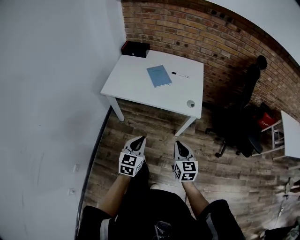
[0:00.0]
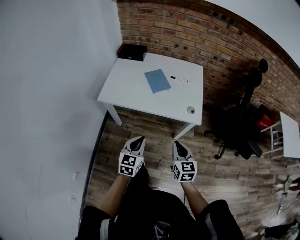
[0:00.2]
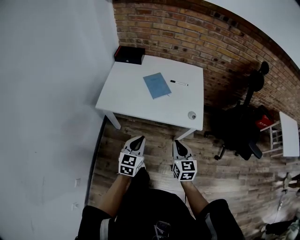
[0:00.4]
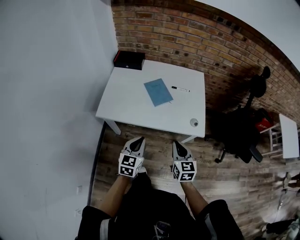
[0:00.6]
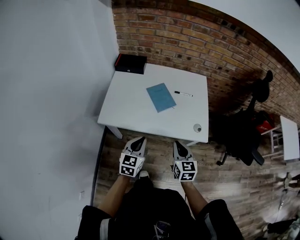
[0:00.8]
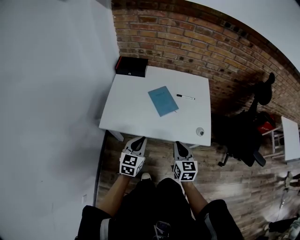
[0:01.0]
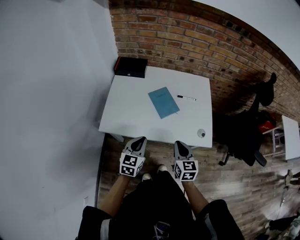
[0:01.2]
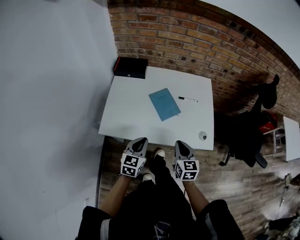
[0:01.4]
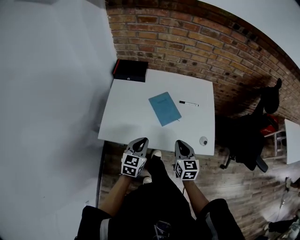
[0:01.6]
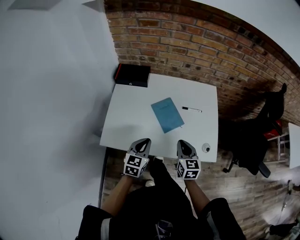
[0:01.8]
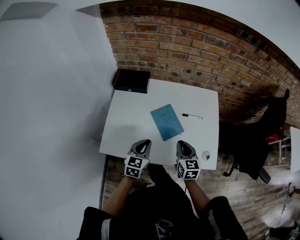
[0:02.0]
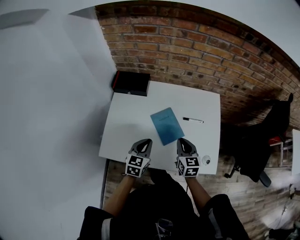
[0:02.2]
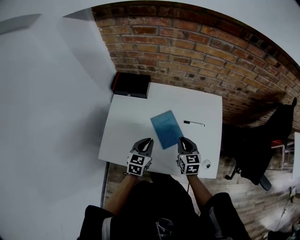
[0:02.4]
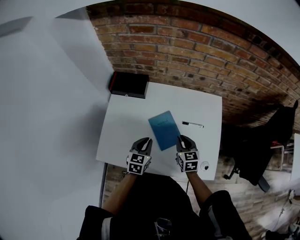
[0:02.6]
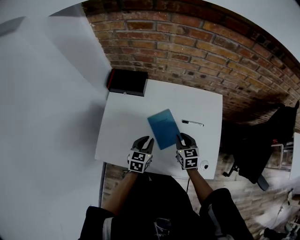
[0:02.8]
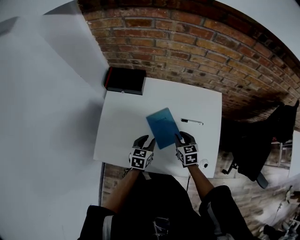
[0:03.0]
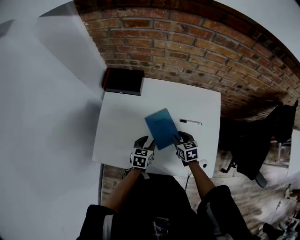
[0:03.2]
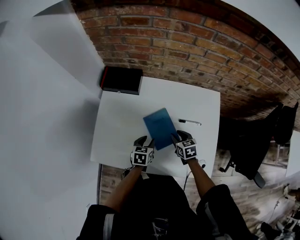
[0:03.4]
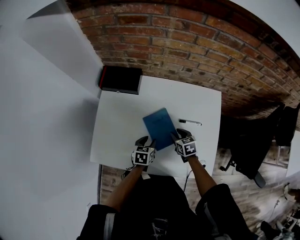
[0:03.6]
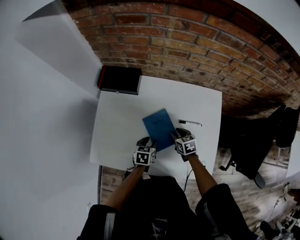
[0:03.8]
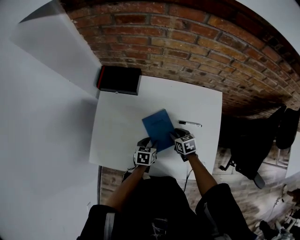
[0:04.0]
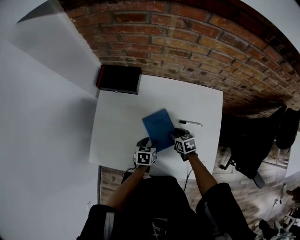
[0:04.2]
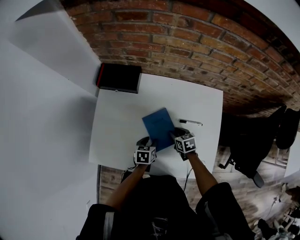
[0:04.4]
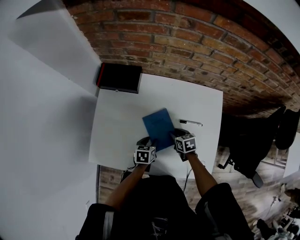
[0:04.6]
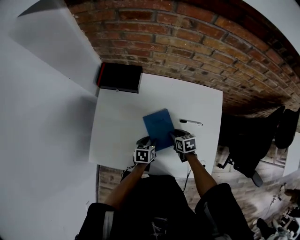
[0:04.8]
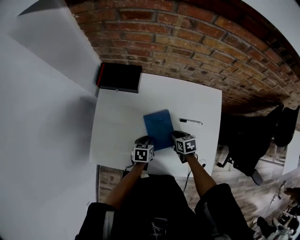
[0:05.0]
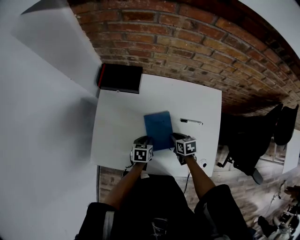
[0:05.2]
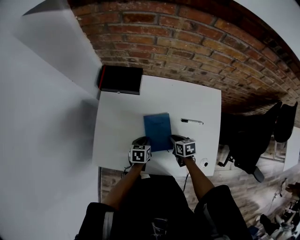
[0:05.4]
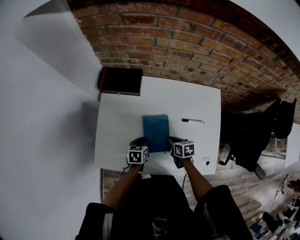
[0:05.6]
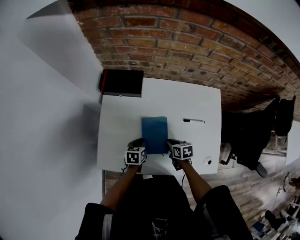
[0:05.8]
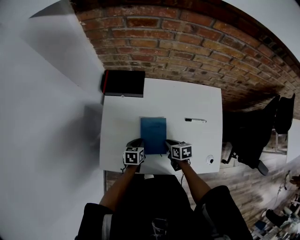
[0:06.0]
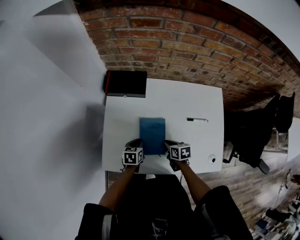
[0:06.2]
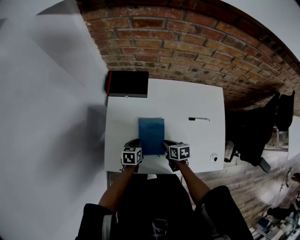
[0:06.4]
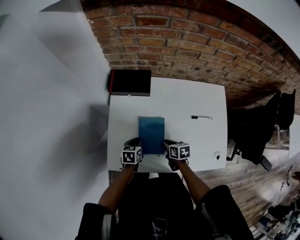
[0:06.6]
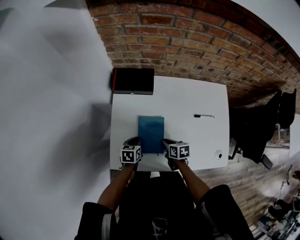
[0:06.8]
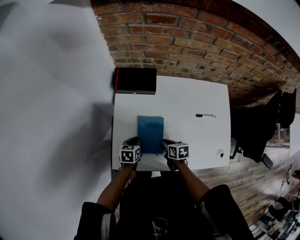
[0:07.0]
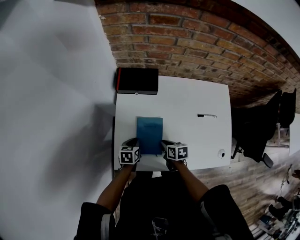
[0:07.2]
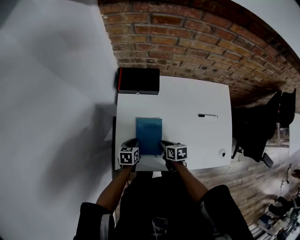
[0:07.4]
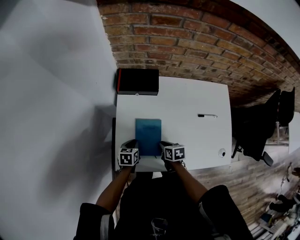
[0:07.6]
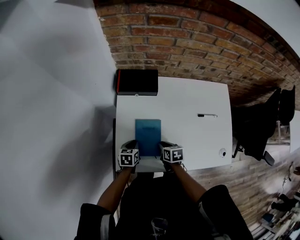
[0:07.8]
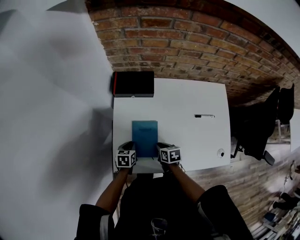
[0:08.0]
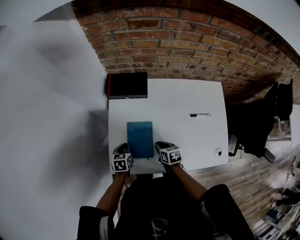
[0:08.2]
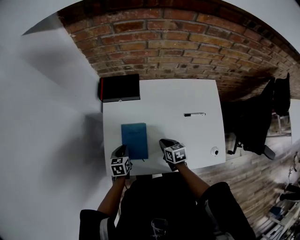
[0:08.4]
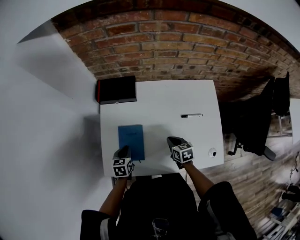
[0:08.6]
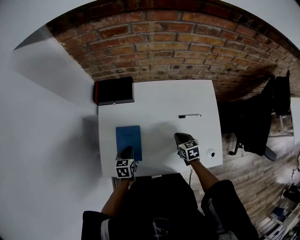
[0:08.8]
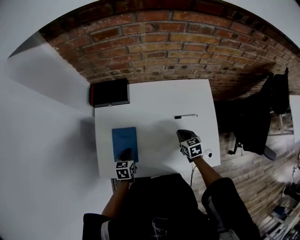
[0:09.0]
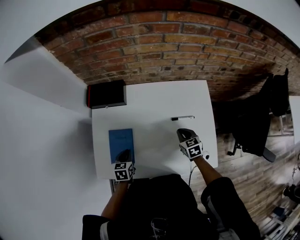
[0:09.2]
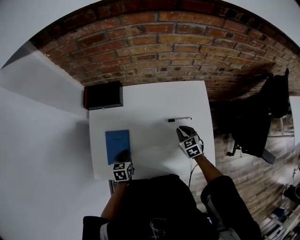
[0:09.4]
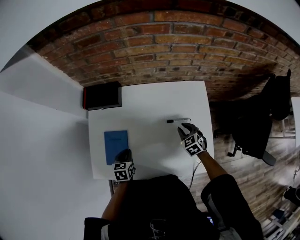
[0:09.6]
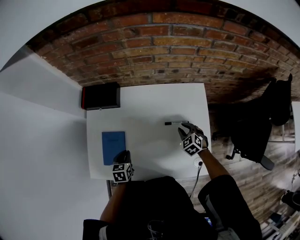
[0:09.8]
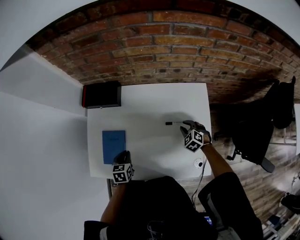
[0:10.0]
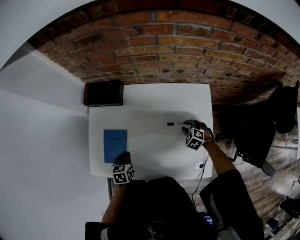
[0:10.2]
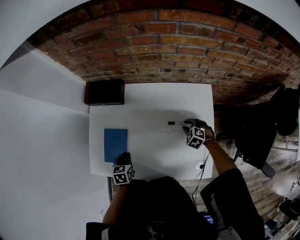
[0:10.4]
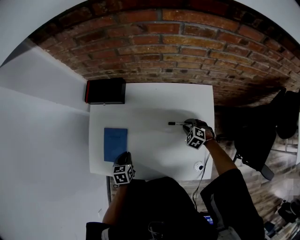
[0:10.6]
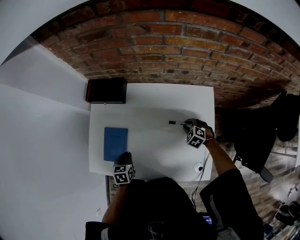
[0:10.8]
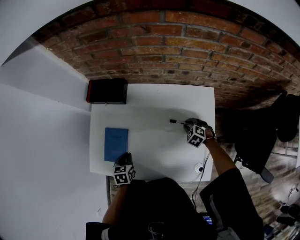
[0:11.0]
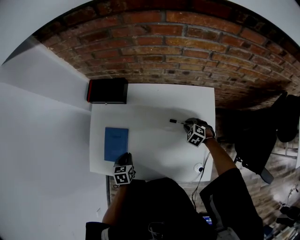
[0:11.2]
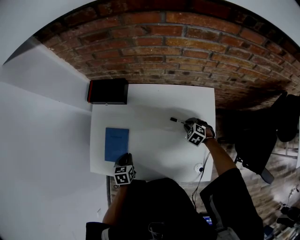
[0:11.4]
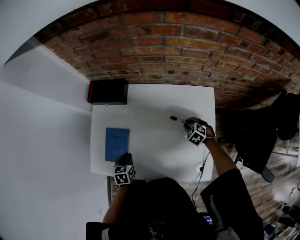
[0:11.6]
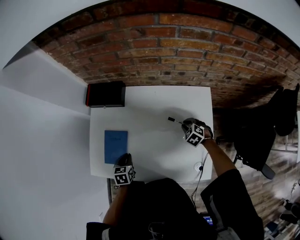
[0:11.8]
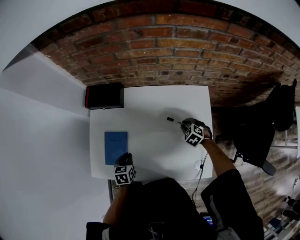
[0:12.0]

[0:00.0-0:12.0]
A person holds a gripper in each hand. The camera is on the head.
0.0 to 1.6 s: The right gripper heads forward and to the left, covering approximately 35 cm. The left gripper moves forward, about 35 cm.
1.6 to 3.0 s: The two grippers go roughly 25 cm forward and downward. The left gripper opens up.
3.0 to 4.4 s: The grippers both shift downward by approximately 10 cm.
4.4 to 6.0 s: The left gripper heads to the left, covering about 10 cm, and closes its fingers; the right gripper goes approximately 10 cm to the left and backward, and closes.
6.0 to 7.6 s: Both grippers travel together to the left, roughly 15 cm.
7.6 to 9.0 s: The left gripper travels to the right by about 10 cm, while the right gripper heads to the right, covering some 25 cm, and changes its angle by roughly 20 degrees.
9.0 to 10.4 s: The left gripper moves to the right, some 5 cm; the right gripper heads to the right, forward and downward, covering approximately 15 cm, and rolls counterclockwise, seen from behind, by roughly 50 degrees.
10.4 to 12.0 s: The grippers make only small movements.

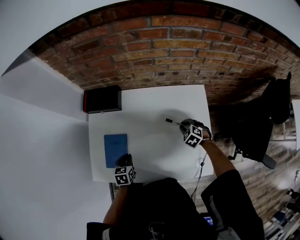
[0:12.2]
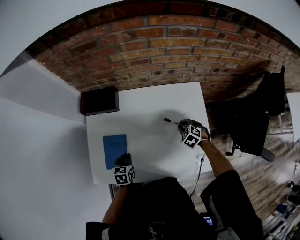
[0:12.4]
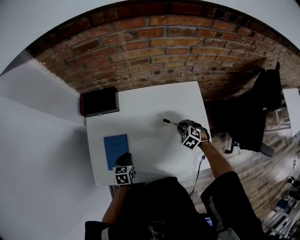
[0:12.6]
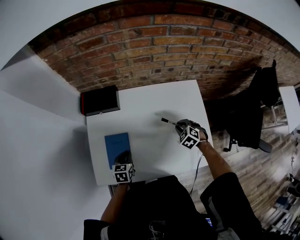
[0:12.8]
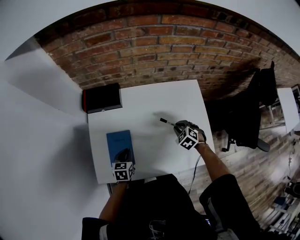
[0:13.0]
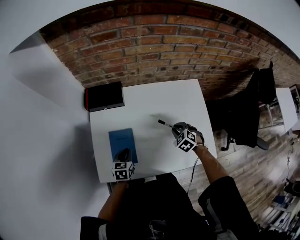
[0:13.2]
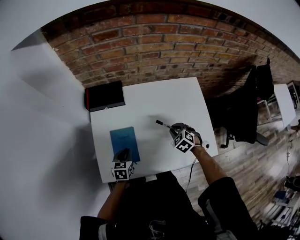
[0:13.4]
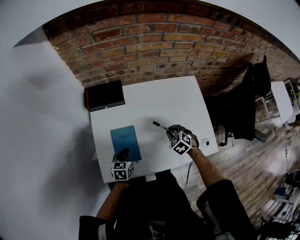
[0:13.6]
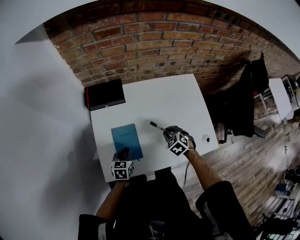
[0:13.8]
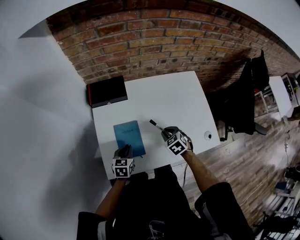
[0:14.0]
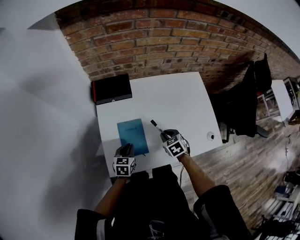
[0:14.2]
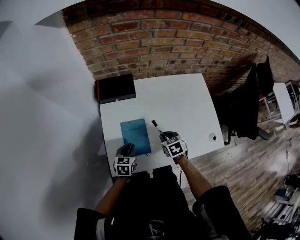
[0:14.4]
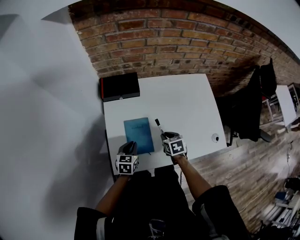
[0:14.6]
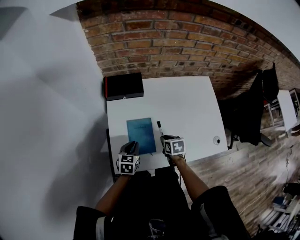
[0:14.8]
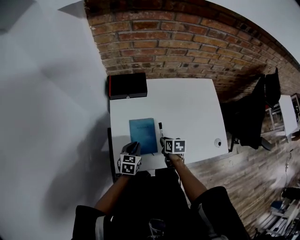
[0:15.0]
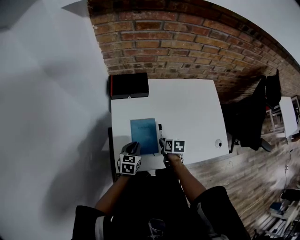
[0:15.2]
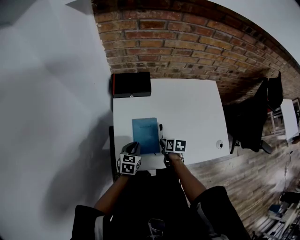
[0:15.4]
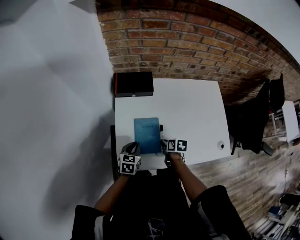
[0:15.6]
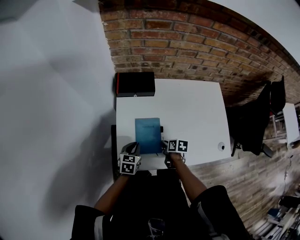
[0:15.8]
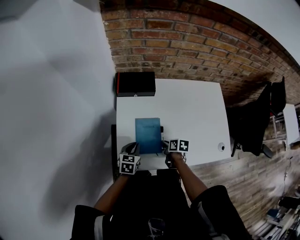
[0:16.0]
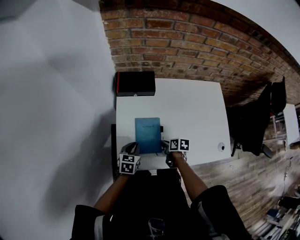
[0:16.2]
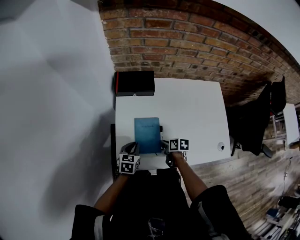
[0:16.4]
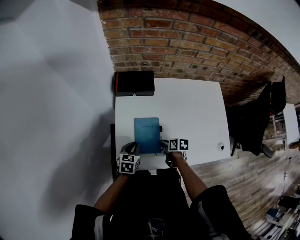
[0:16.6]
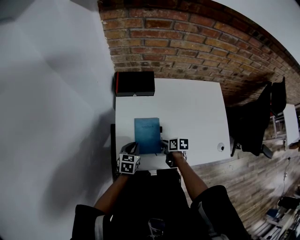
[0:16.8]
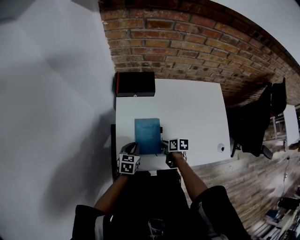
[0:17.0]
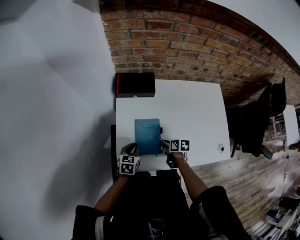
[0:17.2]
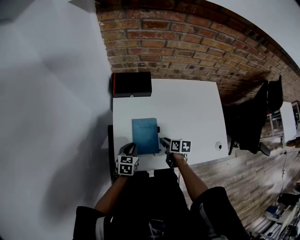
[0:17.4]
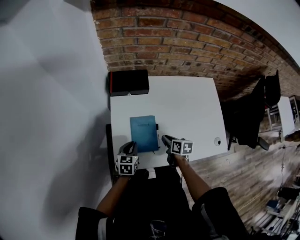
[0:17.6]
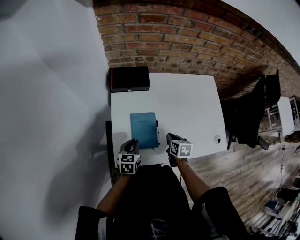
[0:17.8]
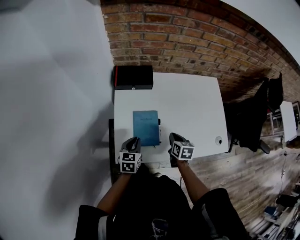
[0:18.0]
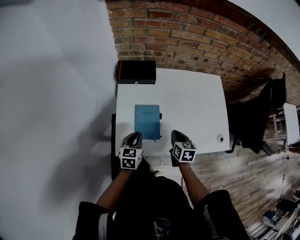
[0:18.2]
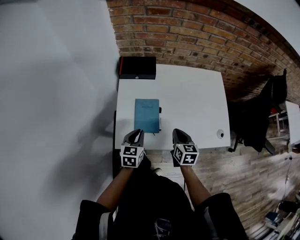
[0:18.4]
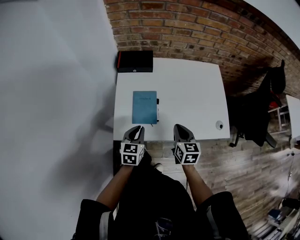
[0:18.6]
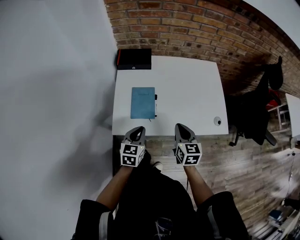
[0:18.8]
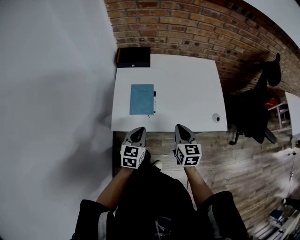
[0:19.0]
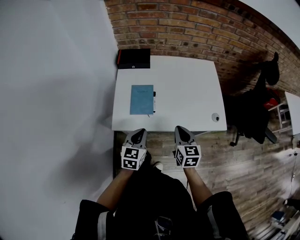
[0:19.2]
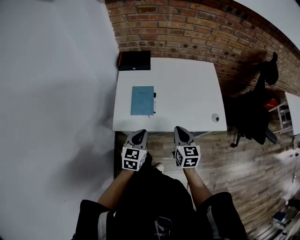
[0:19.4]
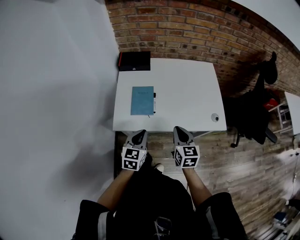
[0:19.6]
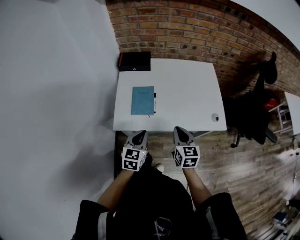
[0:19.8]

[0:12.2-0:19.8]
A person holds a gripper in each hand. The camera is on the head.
12.2 to 13.8 s: The left gripper travels to the left by roughly 10 cm; the right gripper travels to the left and backward by approximately 20 cm.
13.8 to 15.2 s: The right gripper heads to the left and downward, covering approximately 15 cm, and twists roughly 60 degrees clockwise, seen from behind. The left gripper changes place by approximately 5 cm.
15.2 to 16.8 s: There are only small adjustments of the grippers.
16.8 to 18.2 s: The right gripper heads upward and to the right, covering some 10 cm, and rotates roughly 30 degrees, while the left gripper travels upward by approximately 5 cm.
18.2 to 19.8 s: The left gripper heads backward, to the right and upward, covering approximately 20 cm; the right gripper shifts some 20 cm backward and upward.

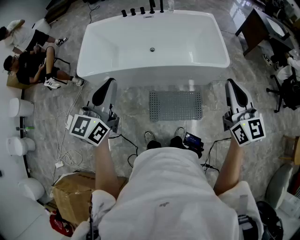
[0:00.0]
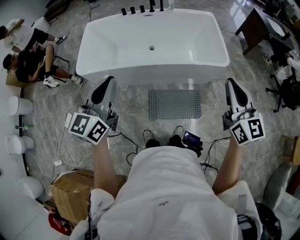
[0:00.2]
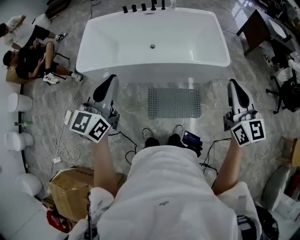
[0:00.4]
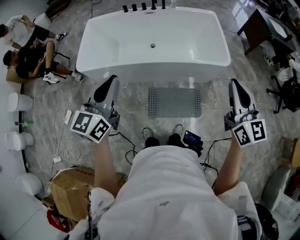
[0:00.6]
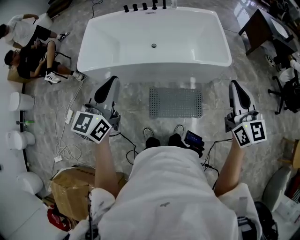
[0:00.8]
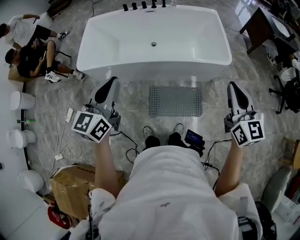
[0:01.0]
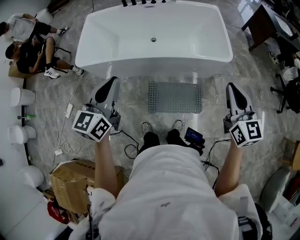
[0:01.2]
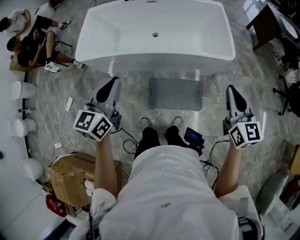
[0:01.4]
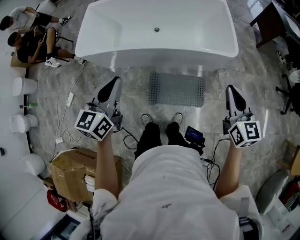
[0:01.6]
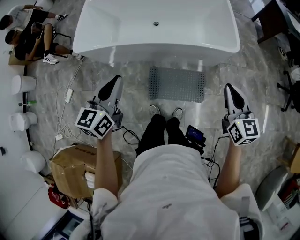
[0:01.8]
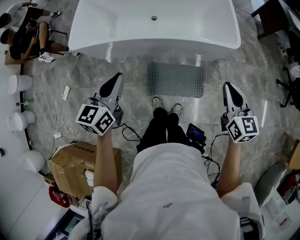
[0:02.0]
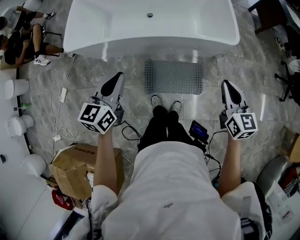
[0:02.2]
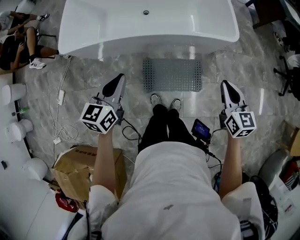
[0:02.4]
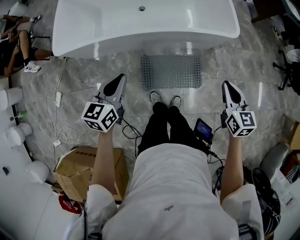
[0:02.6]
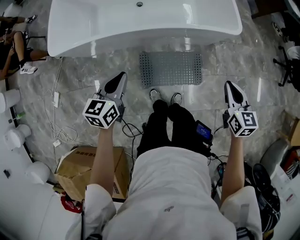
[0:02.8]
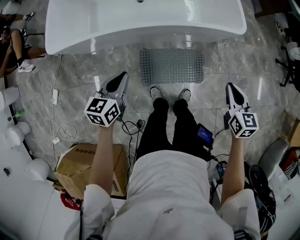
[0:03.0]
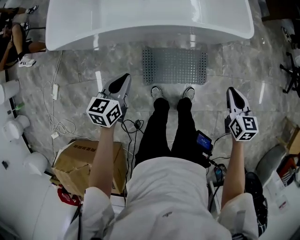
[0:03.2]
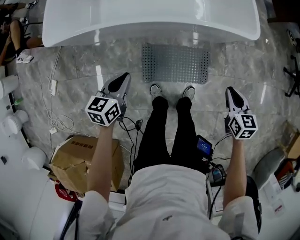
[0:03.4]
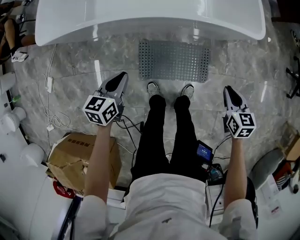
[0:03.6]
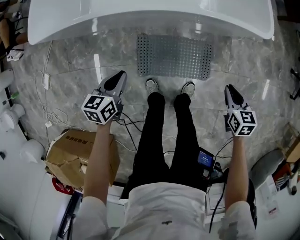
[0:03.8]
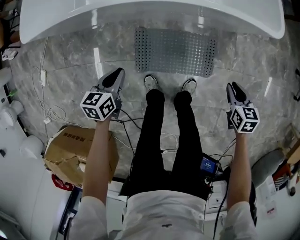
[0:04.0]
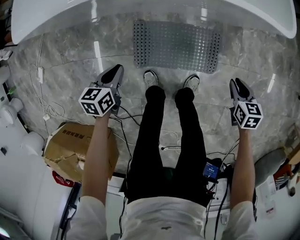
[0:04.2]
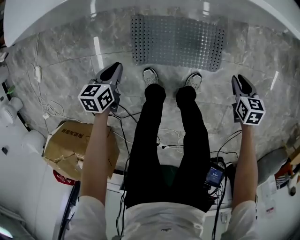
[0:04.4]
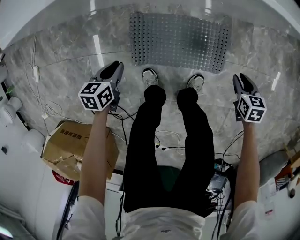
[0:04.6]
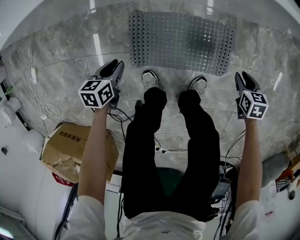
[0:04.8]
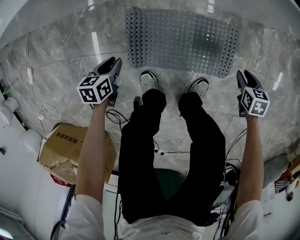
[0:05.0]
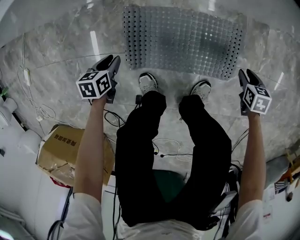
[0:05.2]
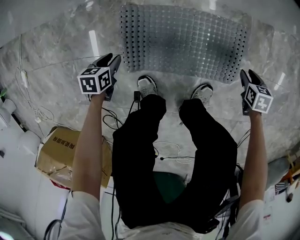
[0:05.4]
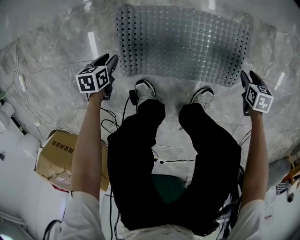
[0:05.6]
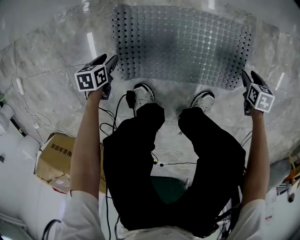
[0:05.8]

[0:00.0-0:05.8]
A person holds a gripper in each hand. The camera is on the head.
0.0 to 1.4 s: The left gripper moves to the right and downward, roughly 10 cm. The right gripper travels downward and to the right by roughly 10 cm.
1.4 to 2.8 s: The grippers both shift downward by approximately 20 cm. The left gripper rotates approximately 20 degrees; the right gripper turns by some 20 degrees.
2.8 to 4.4 s: Both grippers travel together downward, about 40 cm. The left gripper changes its angle by about 30 degrees. Meanwhile the right gripper swivels about 30 degrees.
4.4 to 5.8 s: The two grippers go approximately 35 cm downward. The left gripper opens its fingers. The right gripper opens.
